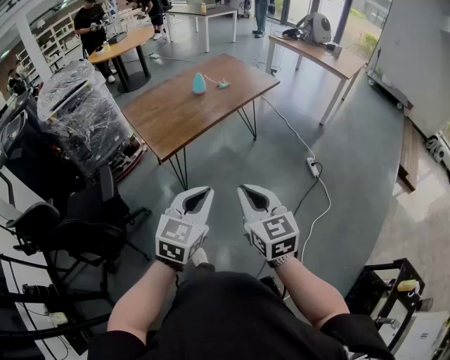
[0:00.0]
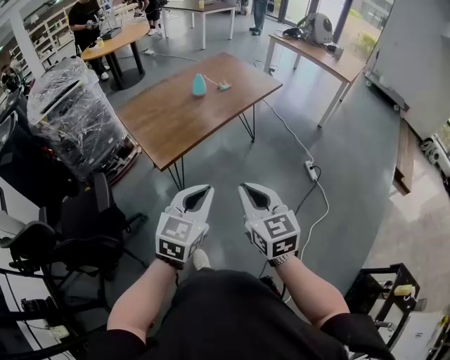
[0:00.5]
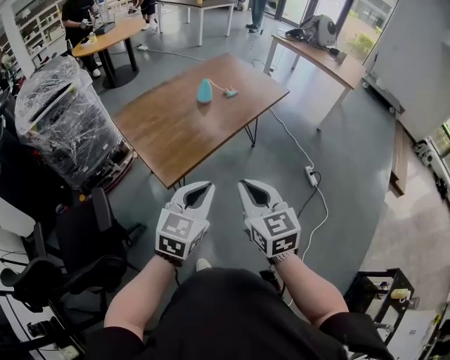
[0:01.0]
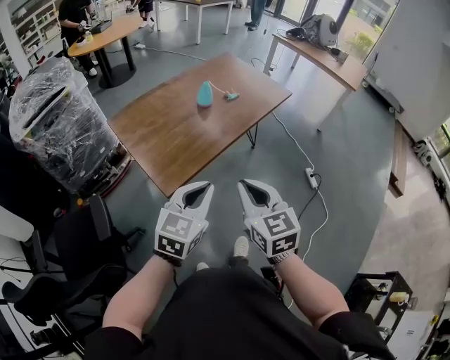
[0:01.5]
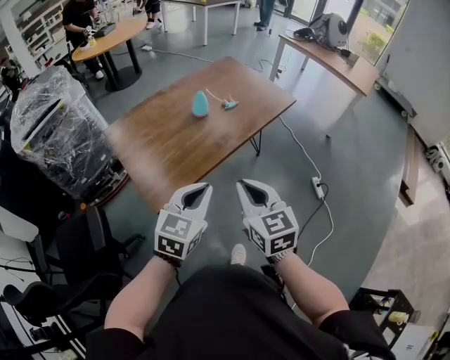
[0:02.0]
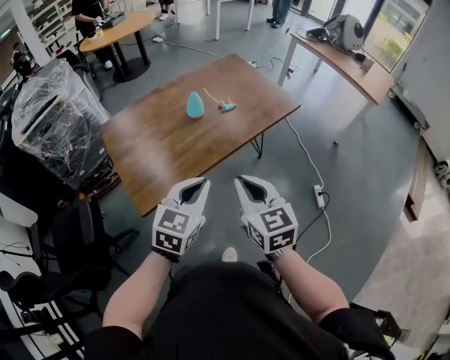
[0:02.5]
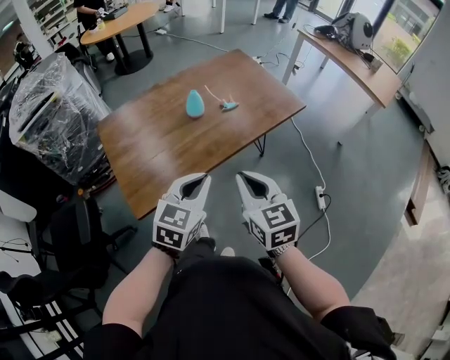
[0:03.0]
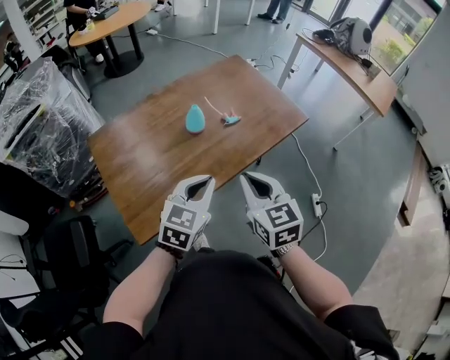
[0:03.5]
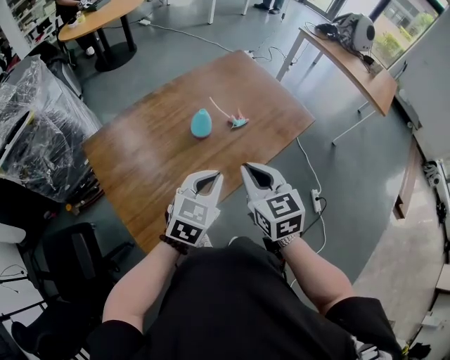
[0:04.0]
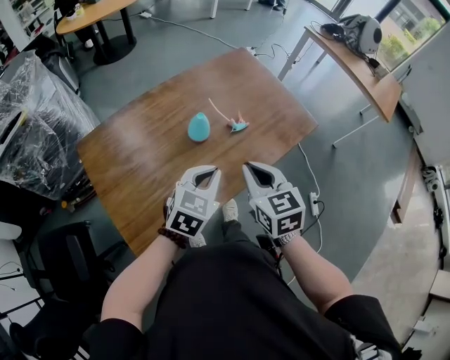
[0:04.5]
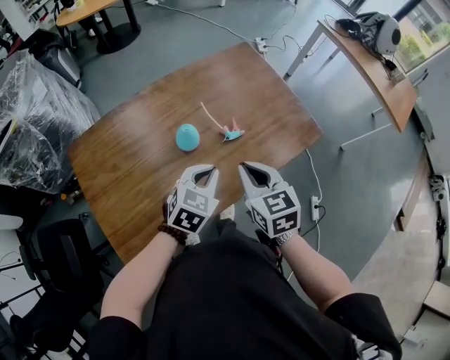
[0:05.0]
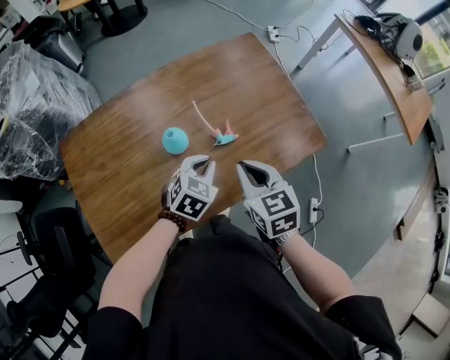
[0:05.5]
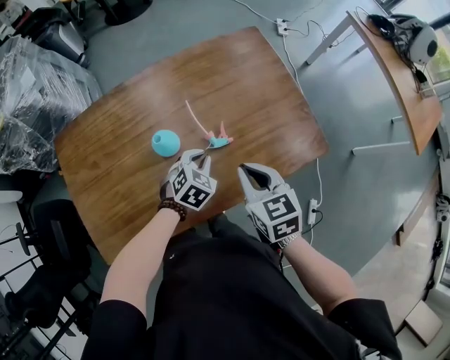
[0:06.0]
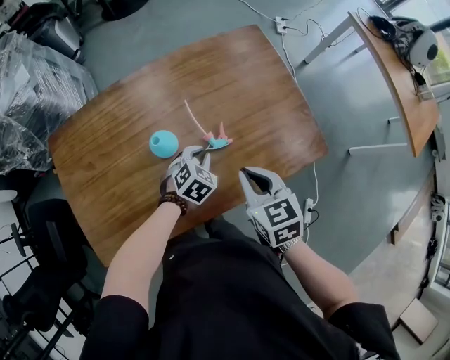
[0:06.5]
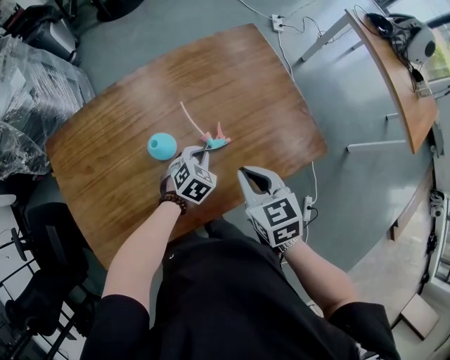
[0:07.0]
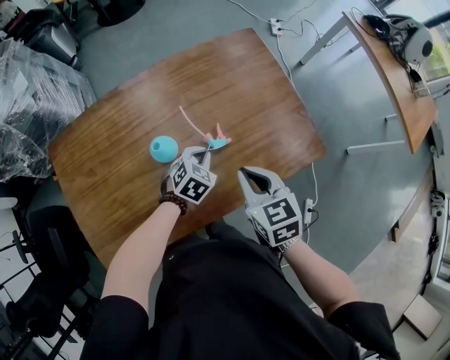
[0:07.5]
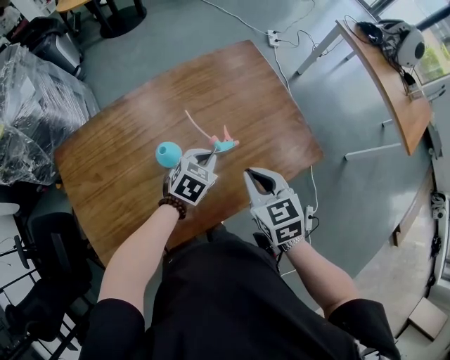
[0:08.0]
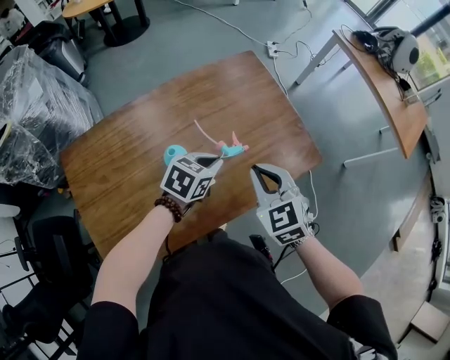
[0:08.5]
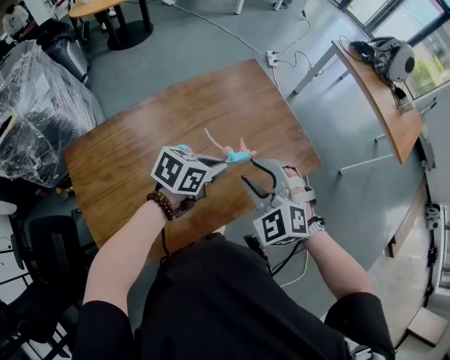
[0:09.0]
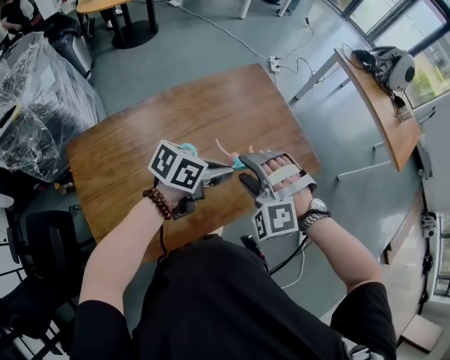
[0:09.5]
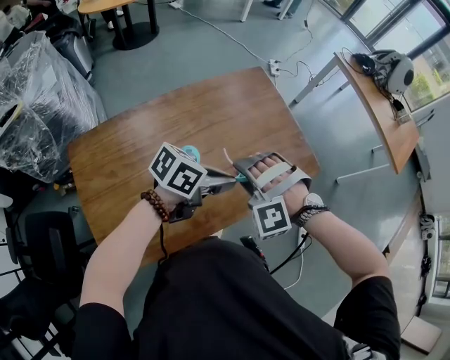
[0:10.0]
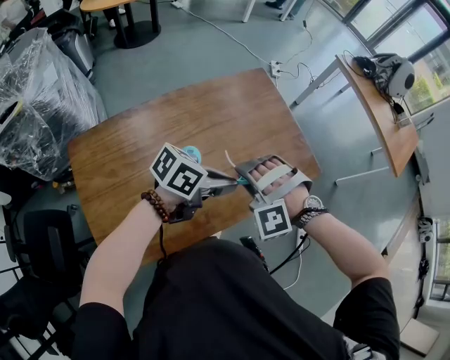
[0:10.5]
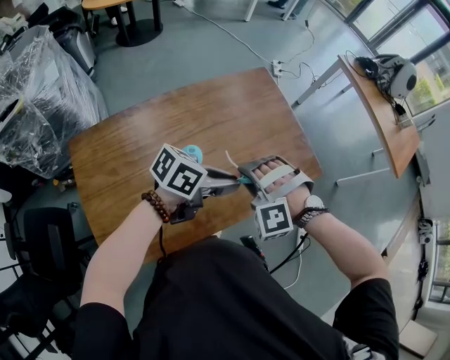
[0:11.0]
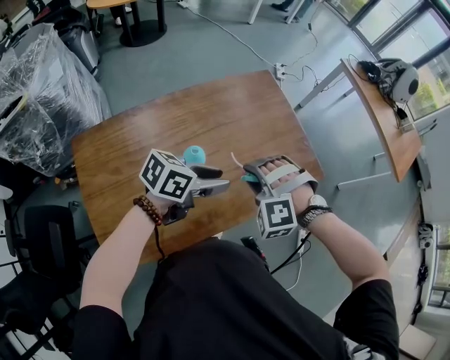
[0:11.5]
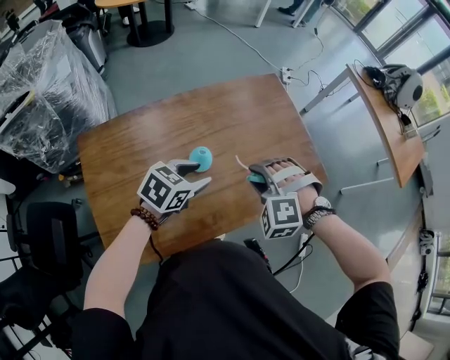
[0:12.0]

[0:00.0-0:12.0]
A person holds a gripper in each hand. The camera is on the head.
0:00.0 to 0:02.0: Both grippers move forward, roughly 30 cm.
0:02.0 to 0:04.0: Both grippers travel together forward, about 25 cm.
0:04.0 to 0:06.0: The left gripper is displaced forward, downward and to the right by approximately 30 cm, and rotates some 30 degrees, while the right gripper is displaced forward, to the right and downward by some 25 cm, and swivels about 20 degrees.
0:06.0 to 0:08.0: The left gripper moves roughly 5 cm.
0:08.0 to 0:10.0: The left gripper moves upward and backward, about 15 cm, and swivels roughly 50 degrees; the right gripper is displaced to the left by approximately 10 cm, twists some 90 degrees counterclockwise, seen from behind, and opens its fingers.
0:10.0 to 0:12.0: The left gripper moves to the left and downward, about 10 cm, turns by some 30 degrees, and opens. Meanwhile the right gripper closes its fingers.

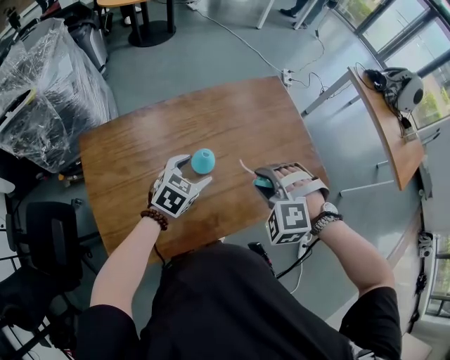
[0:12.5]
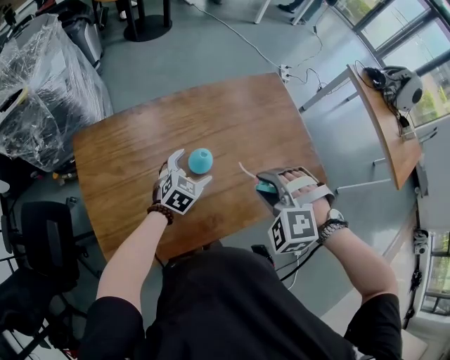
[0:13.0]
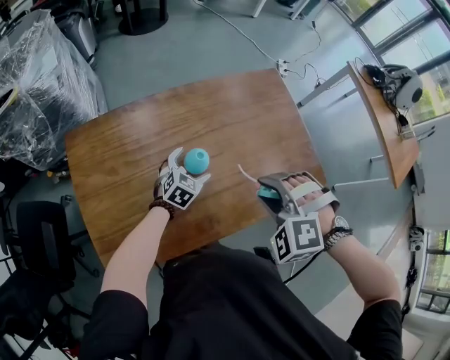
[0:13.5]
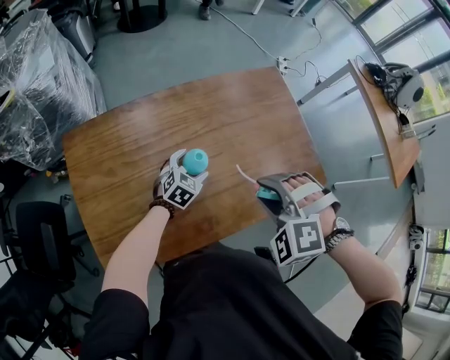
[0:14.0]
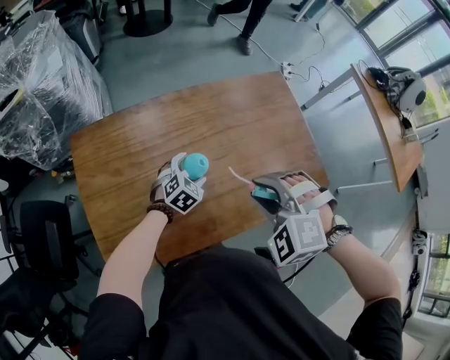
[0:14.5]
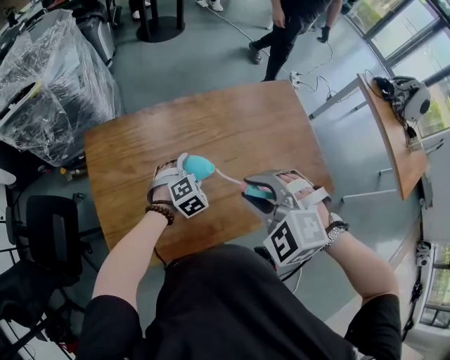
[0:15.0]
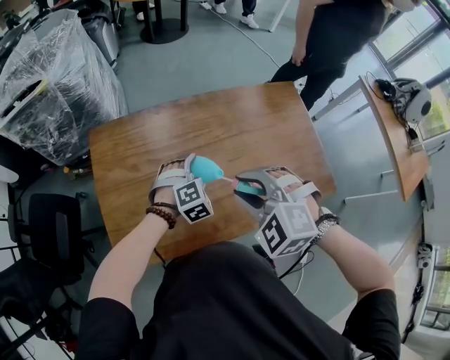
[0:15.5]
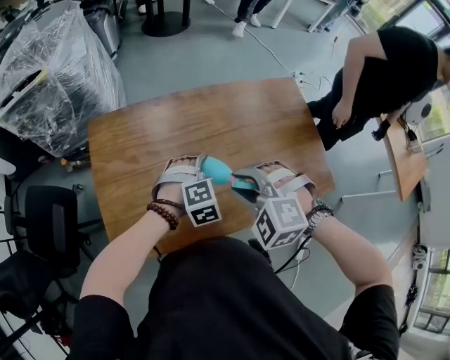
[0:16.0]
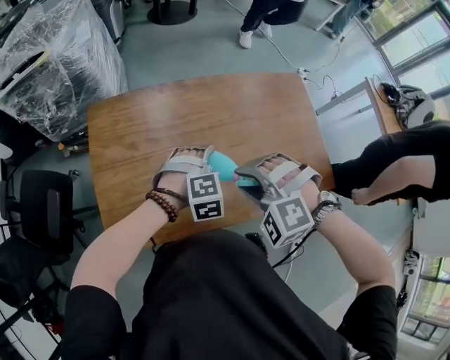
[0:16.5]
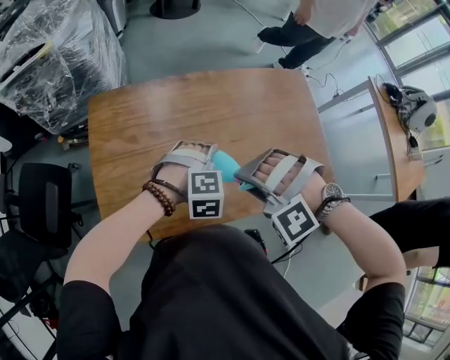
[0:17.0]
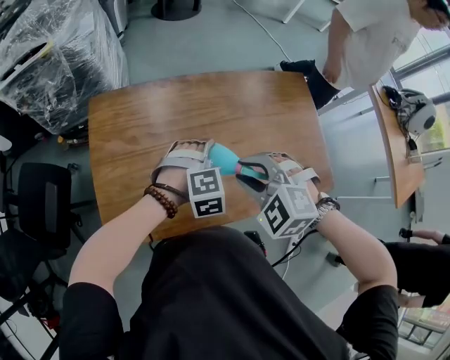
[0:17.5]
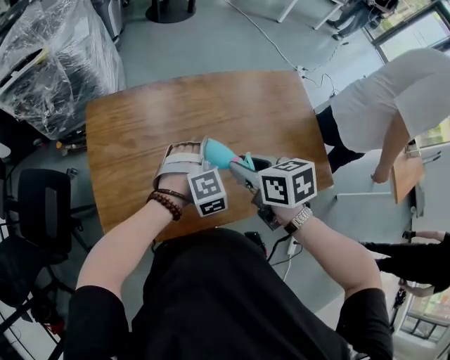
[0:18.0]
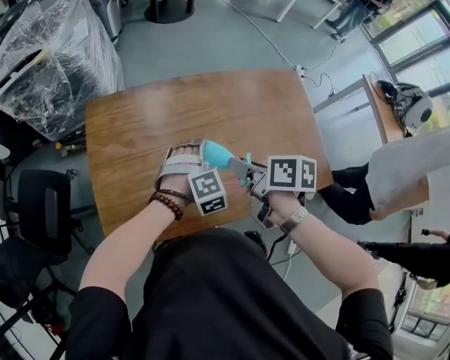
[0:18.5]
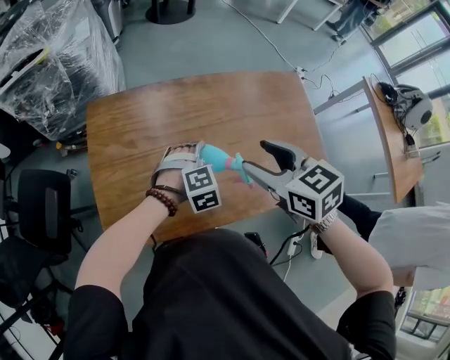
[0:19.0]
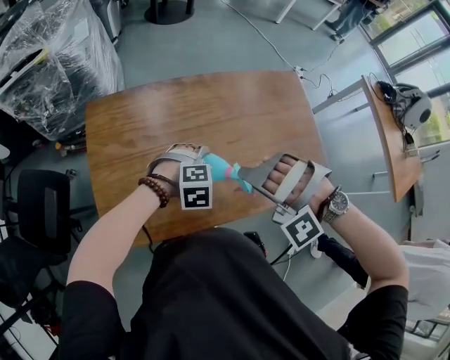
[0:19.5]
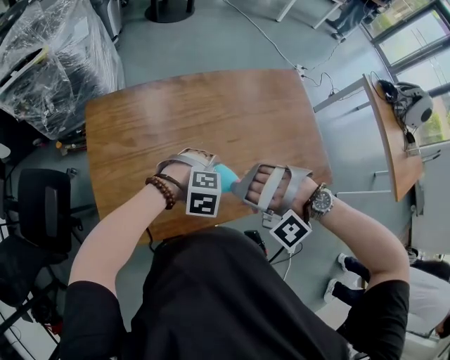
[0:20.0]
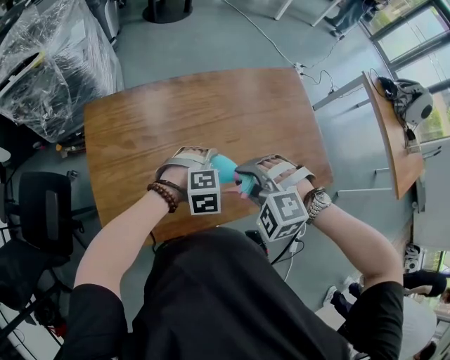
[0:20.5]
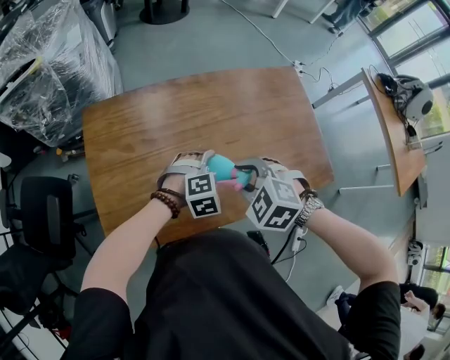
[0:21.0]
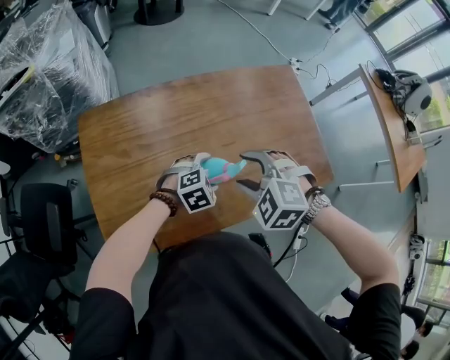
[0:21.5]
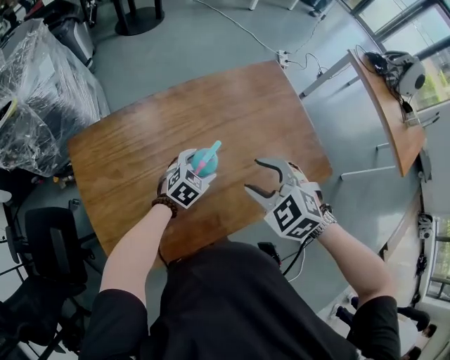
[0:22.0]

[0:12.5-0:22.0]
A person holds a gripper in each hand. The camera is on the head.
0:12.5 to 0:14.5: The left gripper moves downward, some 10 cm.
0:14.5 to 0:16.5: The right gripper heads to the left, covering some 5 cm, and swivels about 20 degrees. Meanwhile the left gripper heads upward and backward, covering some 10 cm, and rotates approximately 30 degrees.
0:16.5 to 0:18.0: The right gripper shifts by roughly 5 cm, and twists some 90 degrees clockwise, seen from behind.
0:18.0 to 0:20.0: The left gripper changes place by about 10 cm, and swivels roughly 40 degrees; the right gripper moves some 5 cm upward and comes back, rotates around the line of its fingers by some 140 degrees, counterclockwise from behind, and opens, then closes once more.
0:20.0 to 0:22.0: The left gripper goes roughly 15 cm forward and downward, and rotates roughly 50 degrees, while the right gripper travels forward by roughly 10 cm, and rotates around the line of its fingers by approximately 90 degrees, clockwise from behind.

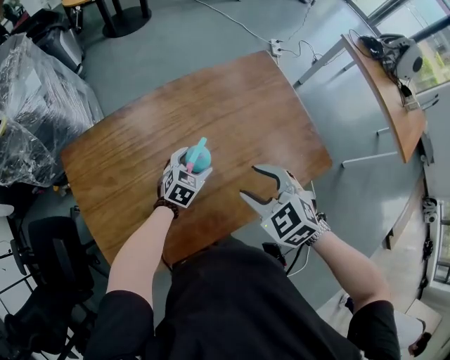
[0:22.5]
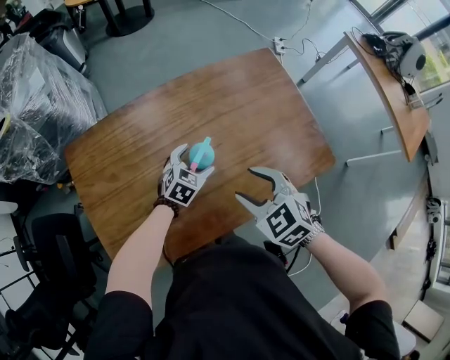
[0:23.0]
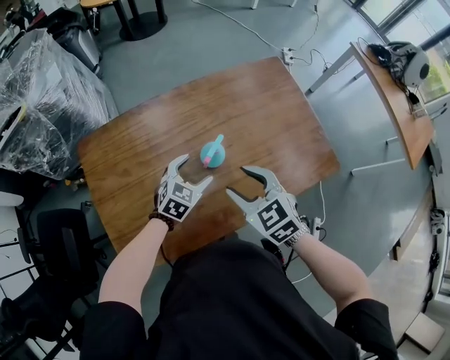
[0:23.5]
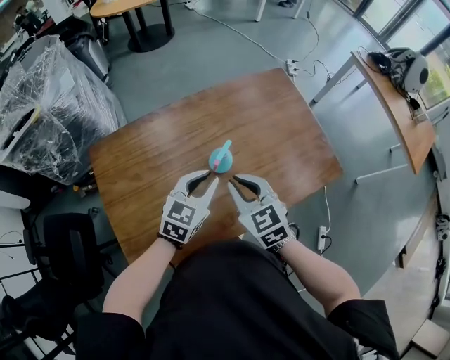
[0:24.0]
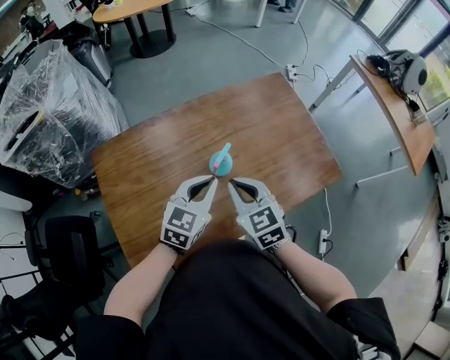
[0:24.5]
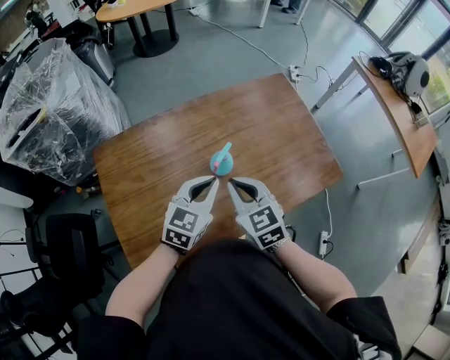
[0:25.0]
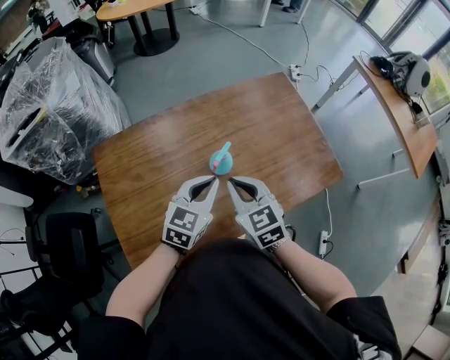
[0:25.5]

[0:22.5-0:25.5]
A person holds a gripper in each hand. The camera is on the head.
0:22.5 to 0:24.0: The left gripper travels upward and backward by some 20 cm, changes its angle by roughly 20 degrees, and closes; the right gripper is displaced to the left by some 10 cm, swivels about 20 degrees, and closes.
0:24.0 to 0:25.5: There are only small adjustments of the grippers.

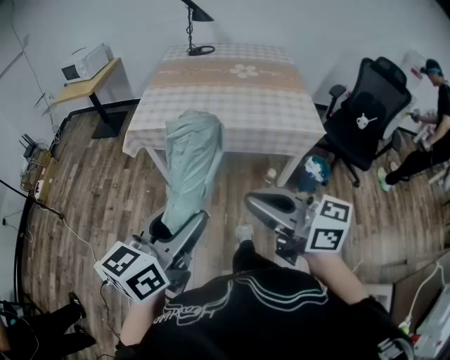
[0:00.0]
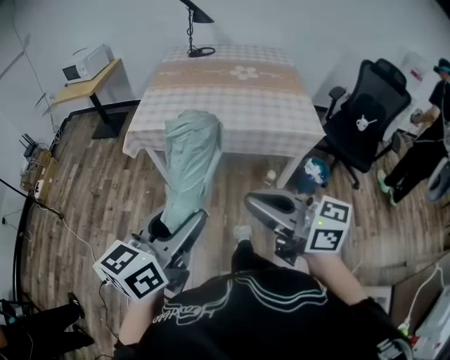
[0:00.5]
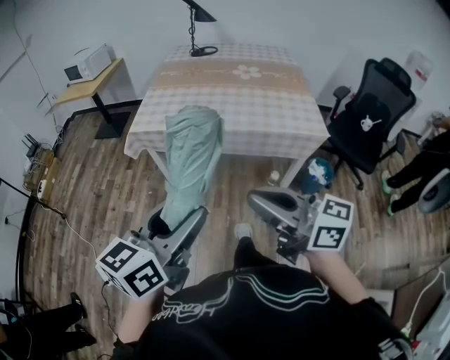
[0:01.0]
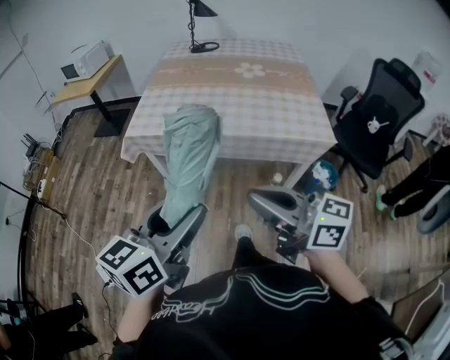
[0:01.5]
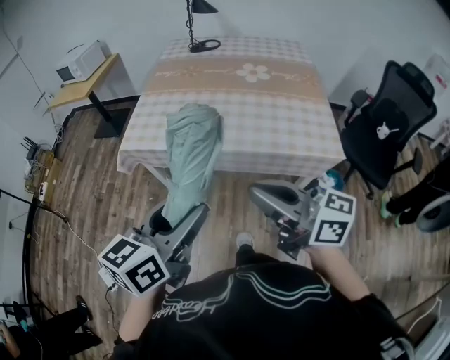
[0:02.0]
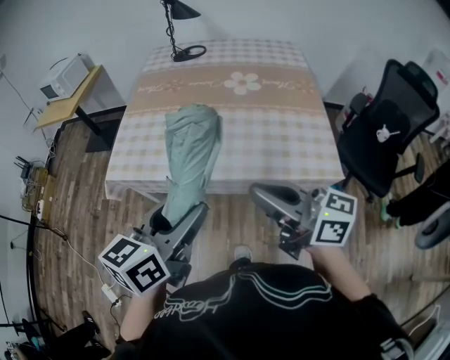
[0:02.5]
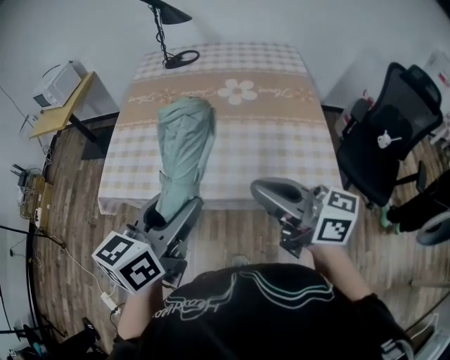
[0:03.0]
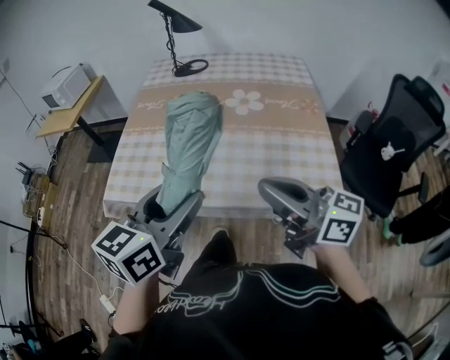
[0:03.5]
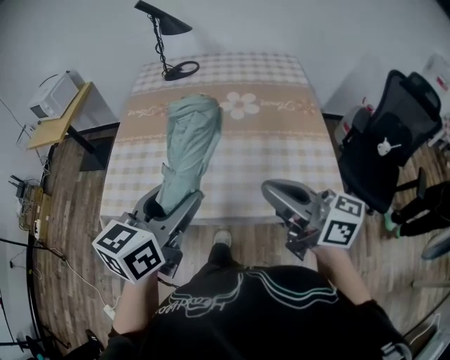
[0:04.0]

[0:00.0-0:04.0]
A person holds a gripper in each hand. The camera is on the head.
0:00.0 to 0:02.0: Both grippers move forward, approximately 20 cm.
0:02.0 to 0:04.0: The right gripper travels forward and to the right by about 20 cm. Meanwhile the left gripper travels forward by approximately 20 cm.
